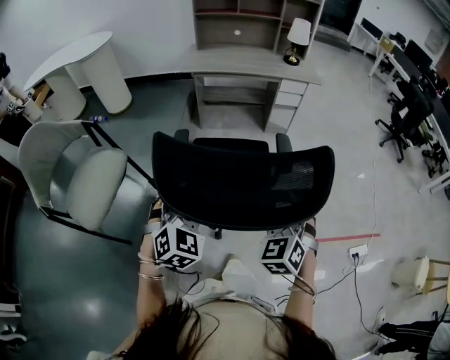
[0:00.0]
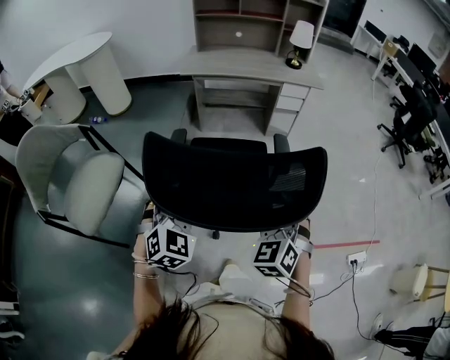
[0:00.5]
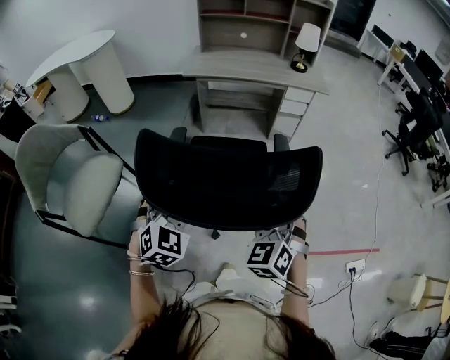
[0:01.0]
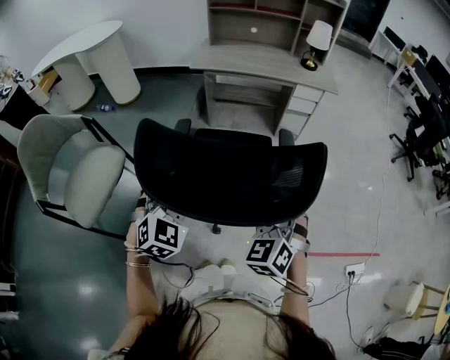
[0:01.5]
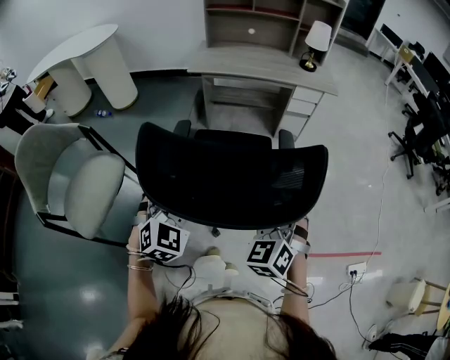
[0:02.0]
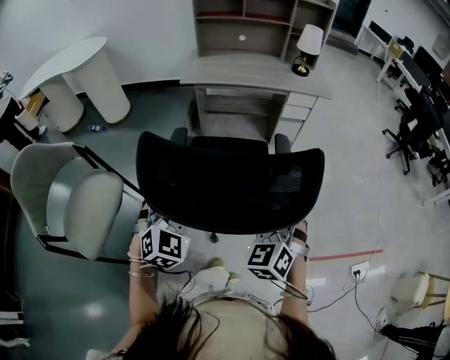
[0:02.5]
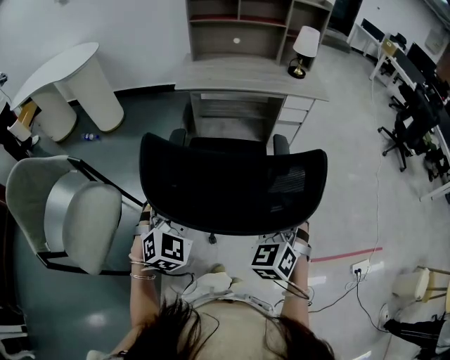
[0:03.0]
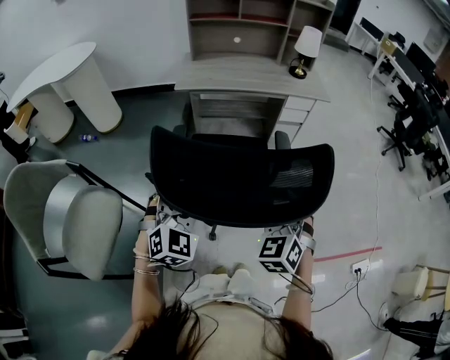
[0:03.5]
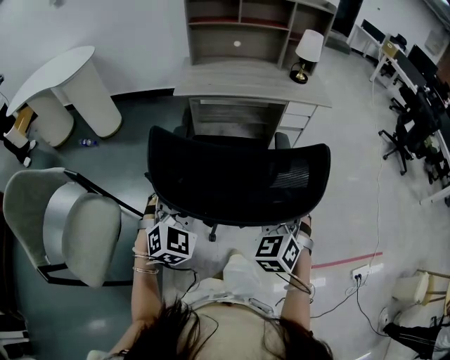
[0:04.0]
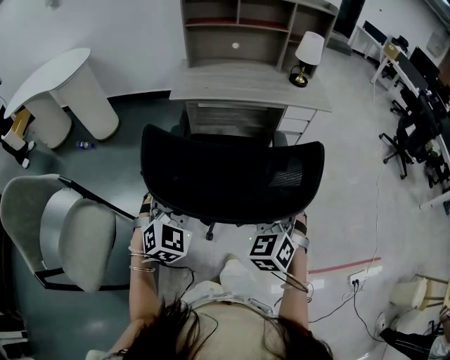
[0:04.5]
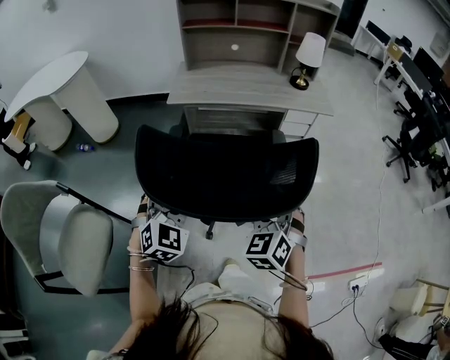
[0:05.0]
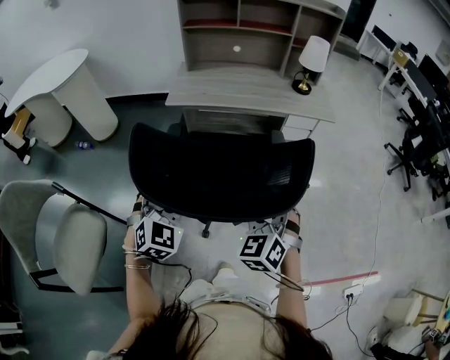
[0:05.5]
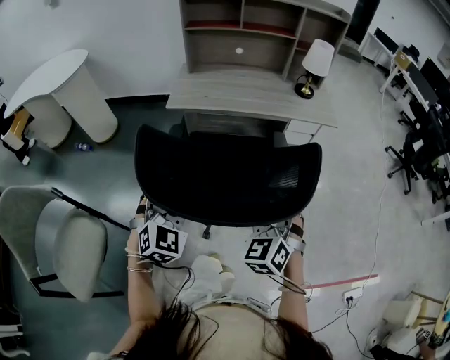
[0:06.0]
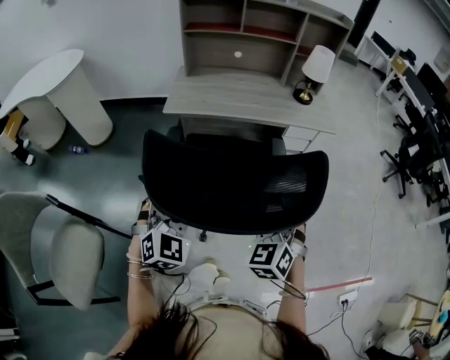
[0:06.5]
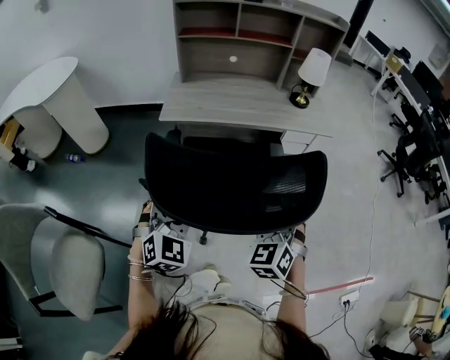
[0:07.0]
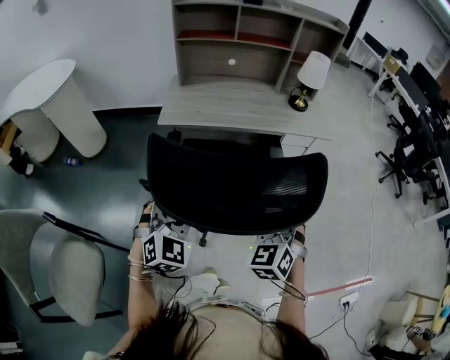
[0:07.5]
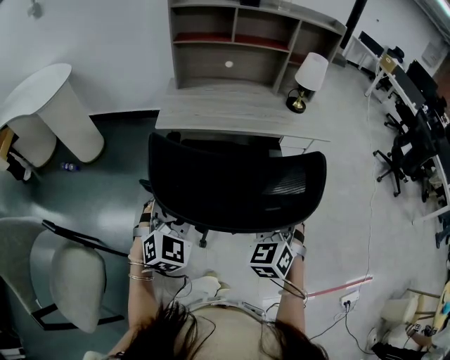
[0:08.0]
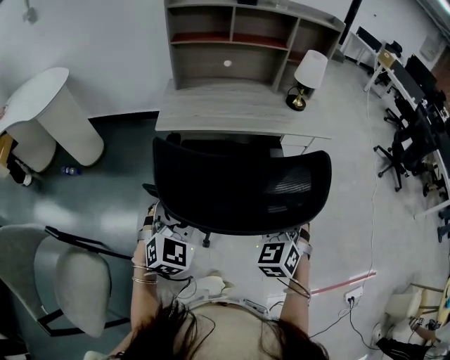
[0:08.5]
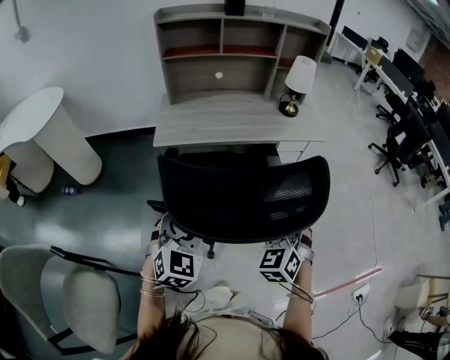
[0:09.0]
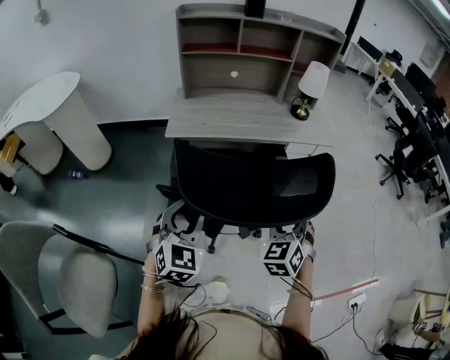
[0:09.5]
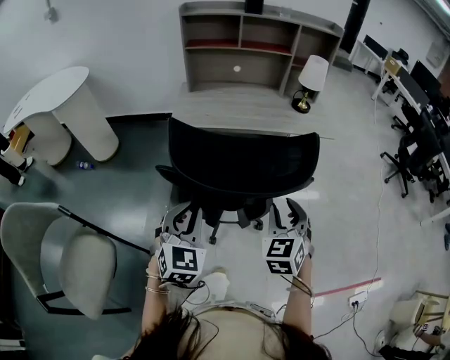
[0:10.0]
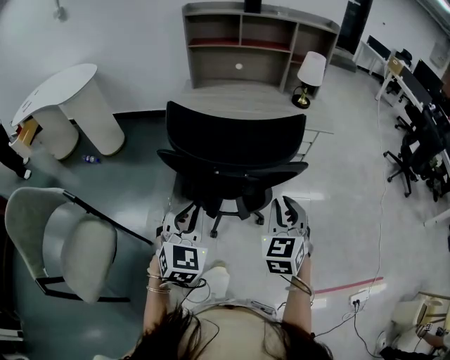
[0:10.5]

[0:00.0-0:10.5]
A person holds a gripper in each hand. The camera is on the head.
0:00.0 to 0:02.0: Both grippers travel together forward, about 10 cm.
0:02.0 to 0:04.0: The grippers both shift forward by roughly 15 cm.
0:04.0 to 0:06.5: The grippers both shift forward by some 15 cm.
0:06.5 to 0:08.5: Both grippers move forward, roughly 5 cm.
0:08.5 to 0:10.5: Both grippers travel together backward, approximately 10 cm. The right gripper closes. Meanwhile the left gripper closes its fingers.

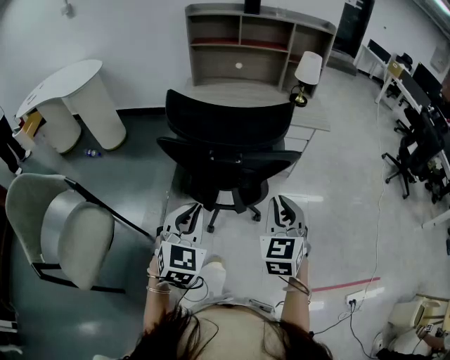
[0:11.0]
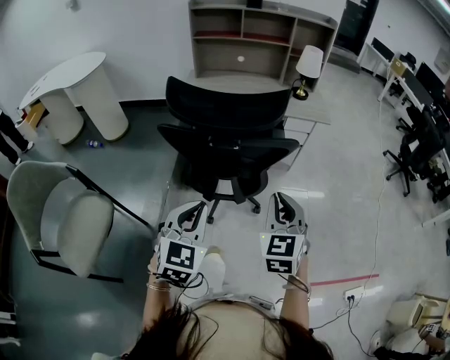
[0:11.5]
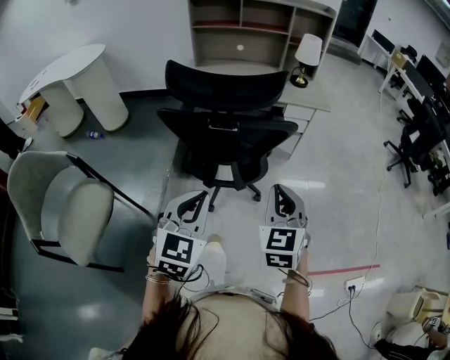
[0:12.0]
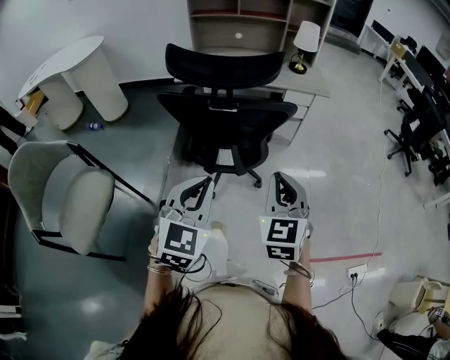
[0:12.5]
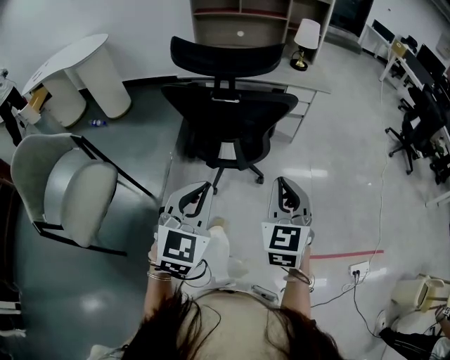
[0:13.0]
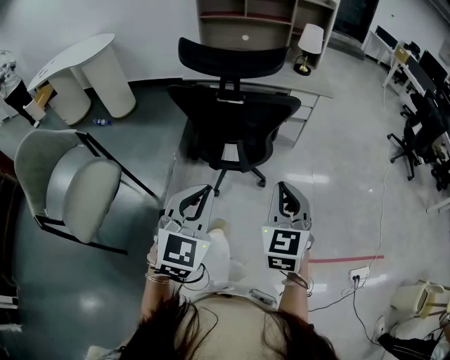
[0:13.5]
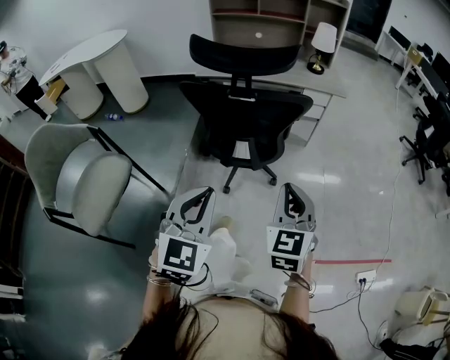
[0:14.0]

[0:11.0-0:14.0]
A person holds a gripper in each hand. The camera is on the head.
0:11.0 to 0:12.5: The left gripper goes about 10 cm backward and to the right; the right gripper goes some 10 cm backward.
0:12.5 to 0:14.0: The two grippers go roughly 10 cm backward.

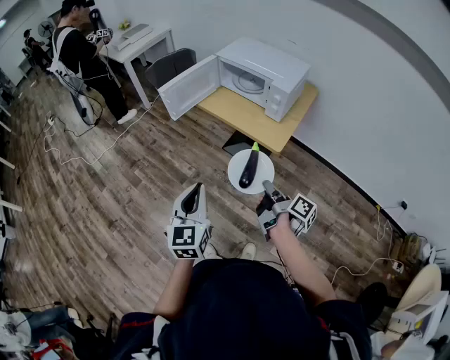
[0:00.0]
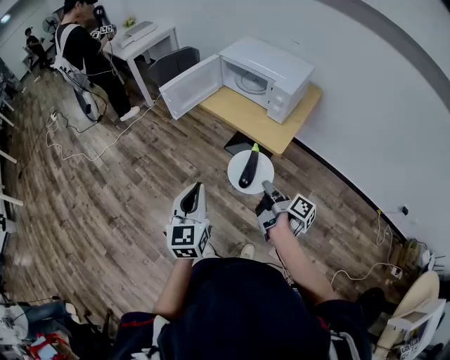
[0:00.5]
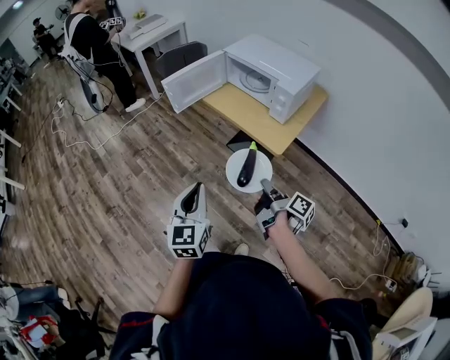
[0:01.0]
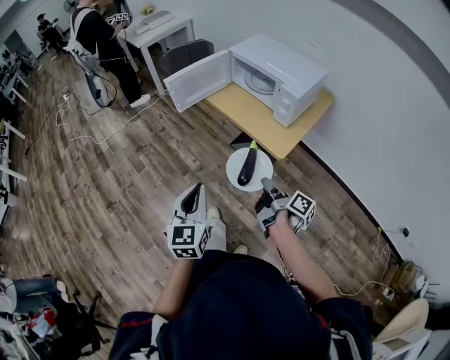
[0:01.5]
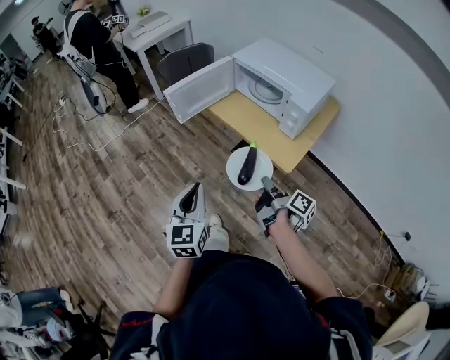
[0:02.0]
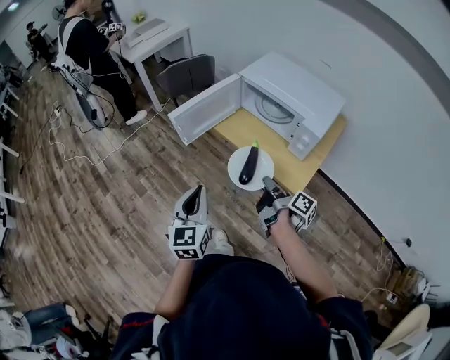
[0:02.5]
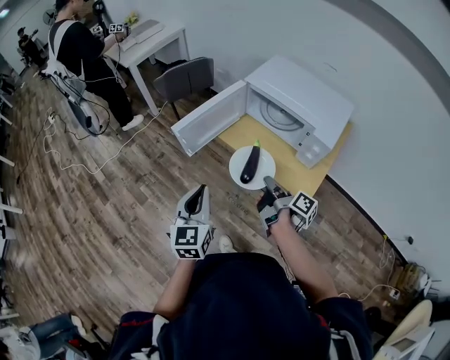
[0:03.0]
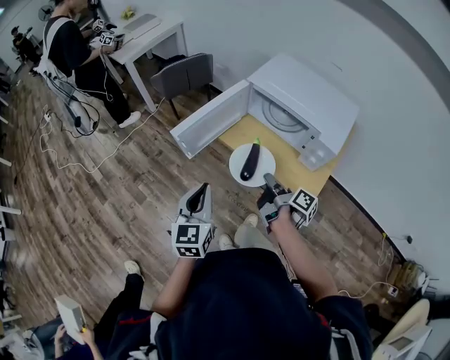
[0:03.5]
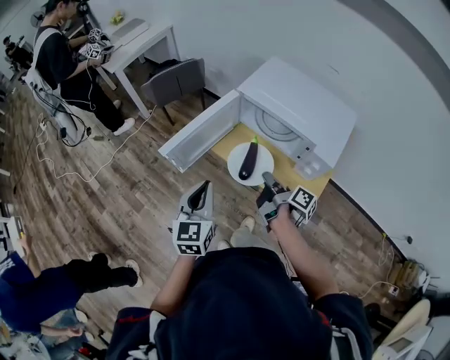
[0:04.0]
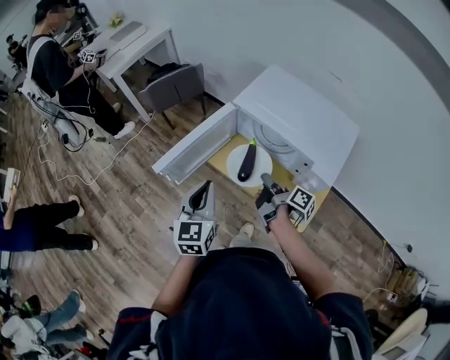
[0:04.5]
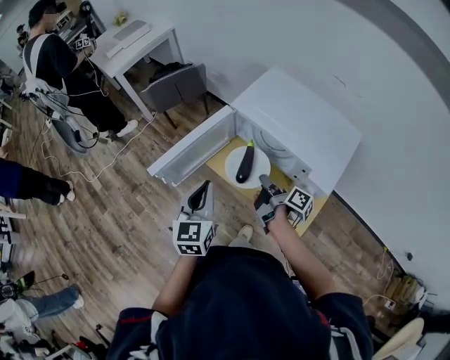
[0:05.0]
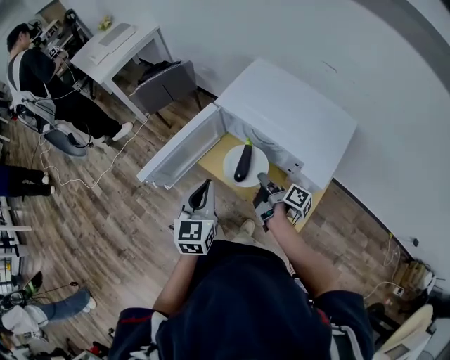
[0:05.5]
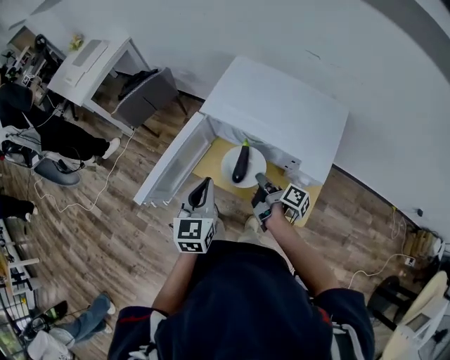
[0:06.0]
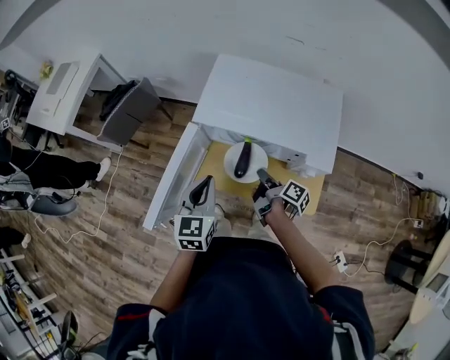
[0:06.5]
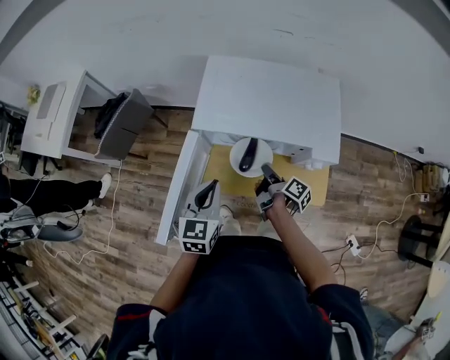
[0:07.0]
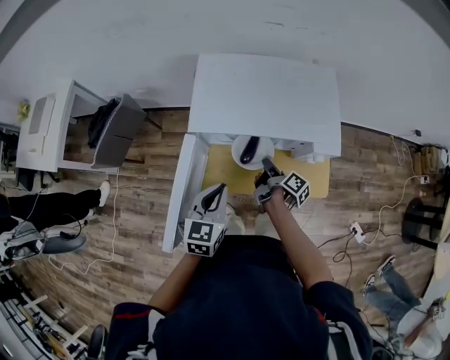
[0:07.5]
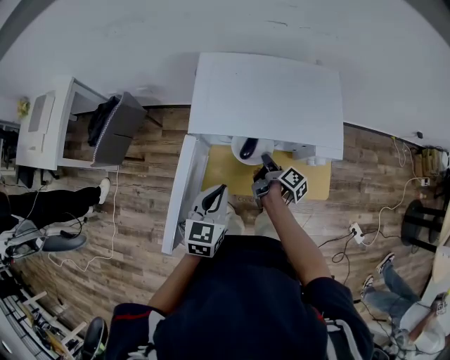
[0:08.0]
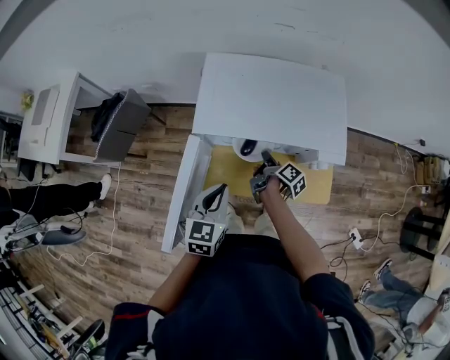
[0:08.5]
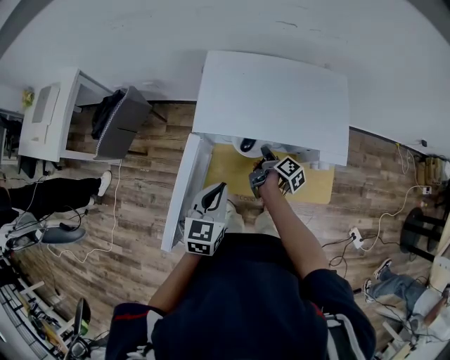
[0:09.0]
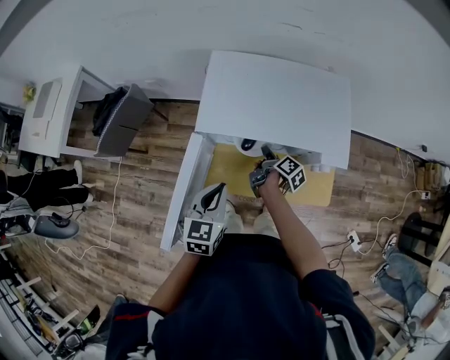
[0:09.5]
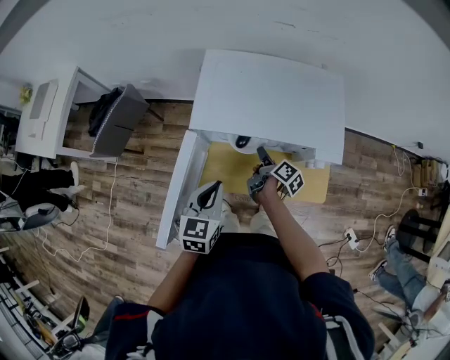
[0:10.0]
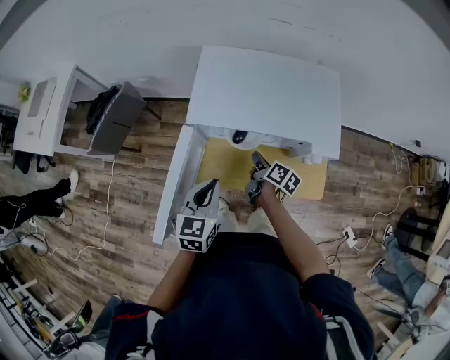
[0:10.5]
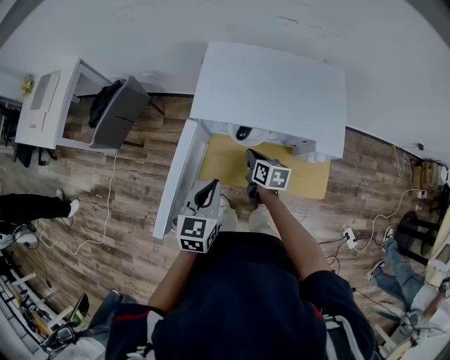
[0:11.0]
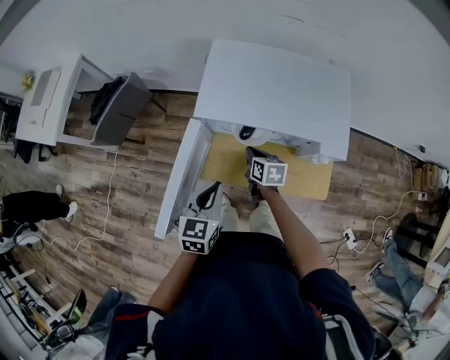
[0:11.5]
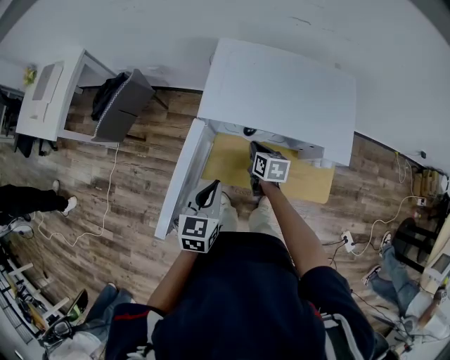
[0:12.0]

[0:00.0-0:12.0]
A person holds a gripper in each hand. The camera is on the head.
0:00.0 to 0:02.0: Both grippers travel together forward, roughly 10 cm.
0:02.0 to 0:04.0: The two grippers go some 30 cm forward.
0:04.0 to 0:06.0: The right gripper moves forward, to the right and downward, approximately 10 cm. Meanwhile the left gripper heads forward and to the right, covering about 15 cm.
0:06.0 to 0:08.0: Both grippers move downward, some 5 cm. The left gripper swivels about 30 degrees; the right gripper changes its angle by approximately 30 degrees.
0:08.0 to 0:10.0: The right gripper opens.
0:10.0 to 0:12.0: The right gripper shifts about 5 cm to the left, rotates around the line of its fingers by roughly 50 degrees, counterclockwise from behind, and closes up.

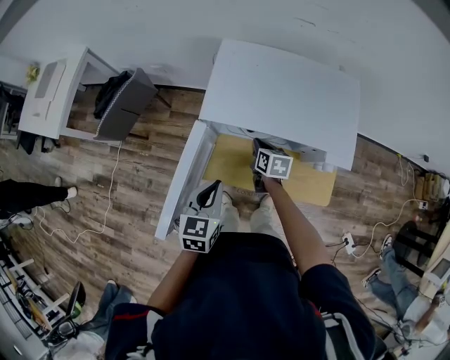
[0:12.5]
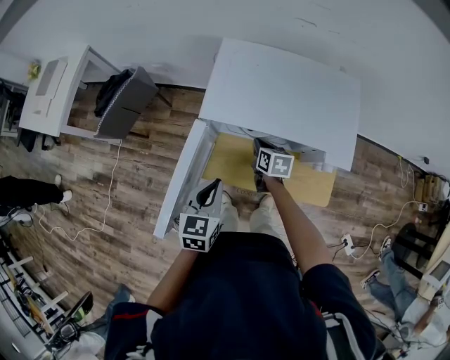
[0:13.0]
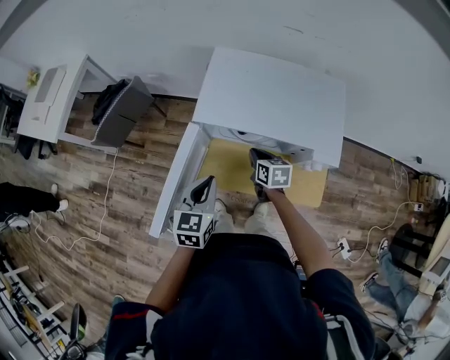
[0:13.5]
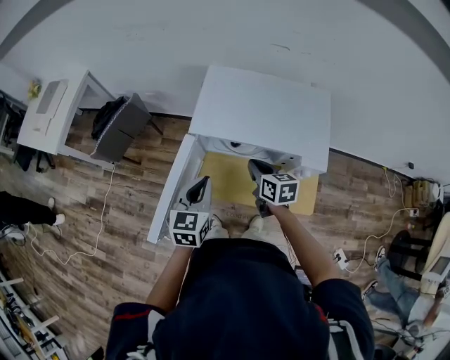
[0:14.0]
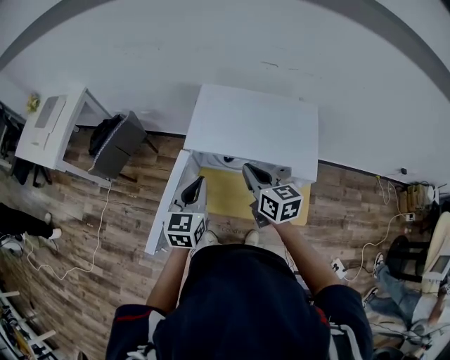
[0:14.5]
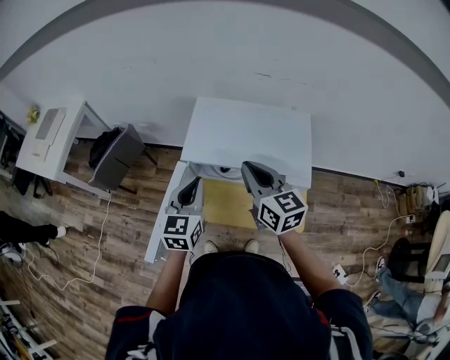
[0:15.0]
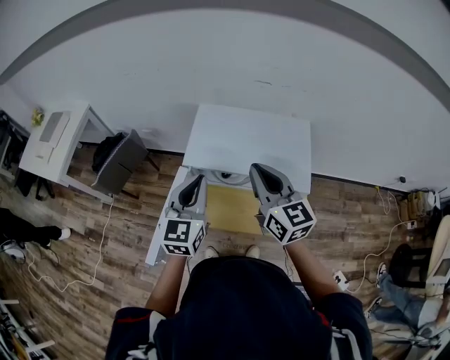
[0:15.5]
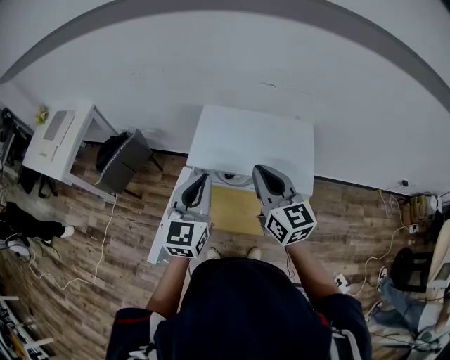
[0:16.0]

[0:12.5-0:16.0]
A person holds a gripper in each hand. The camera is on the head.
0:12.5 to 0:14.5: The left gripper heads upward and forward, covering roughly 10 cm; the right gripper shifts some 25 cm upward, and swivels about 30 degrees.
0:14.5 to 0:16.0: The two grippers go some 15 cm upward. The right gripper changes its angle by roughly 20 degrees.
